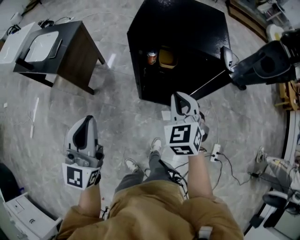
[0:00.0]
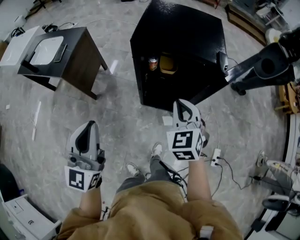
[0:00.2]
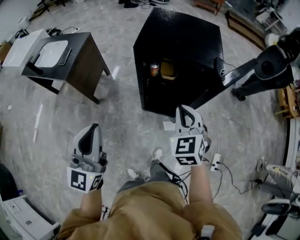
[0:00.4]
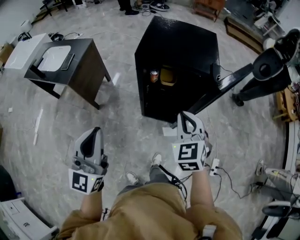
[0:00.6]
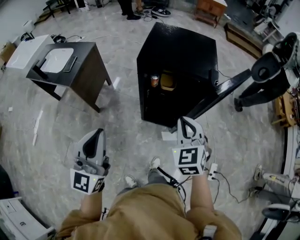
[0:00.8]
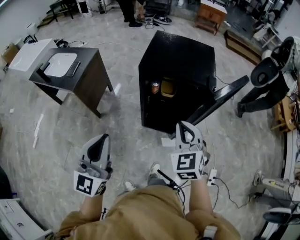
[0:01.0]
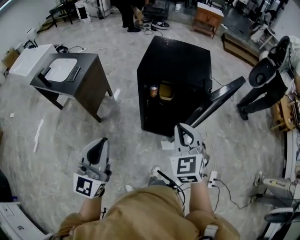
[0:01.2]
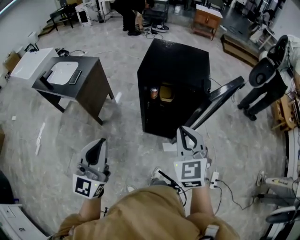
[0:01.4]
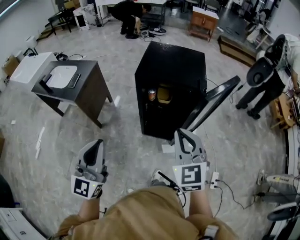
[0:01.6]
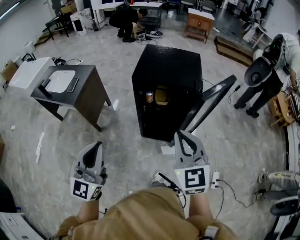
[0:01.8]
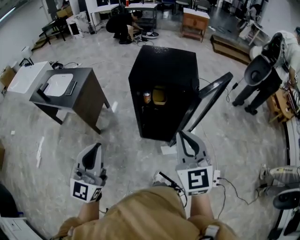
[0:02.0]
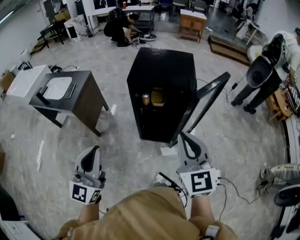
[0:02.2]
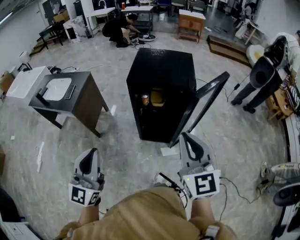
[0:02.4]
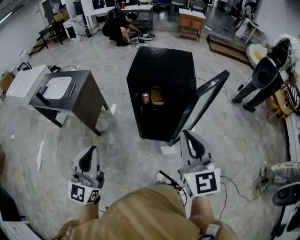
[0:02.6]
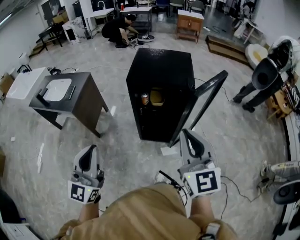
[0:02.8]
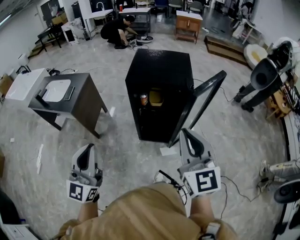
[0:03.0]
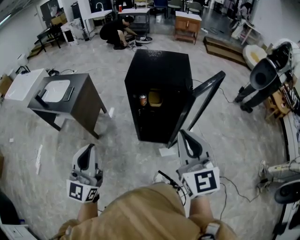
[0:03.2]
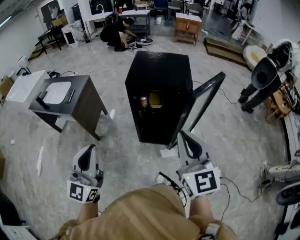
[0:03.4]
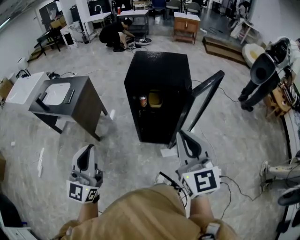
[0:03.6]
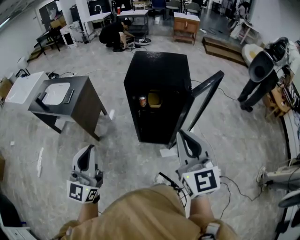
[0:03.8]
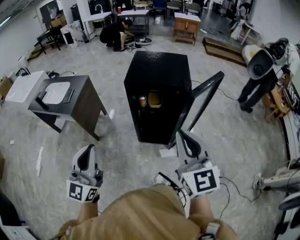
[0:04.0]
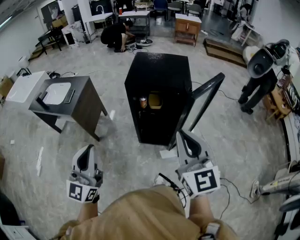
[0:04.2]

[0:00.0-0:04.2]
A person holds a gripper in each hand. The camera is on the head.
0.0 to 1.4 s: The left gripper travels backward and upward by roughly 15 cm. Meanwhile the right gripper heads upward and backward, covering some 20 cm.
1.4 to 2.8 s: The left gripper shifts by roughly 5 cm; the right gripper heads upward and backward, covering about 10 cm, and turns by some 30 degrees.
2.8 to 4.2 s: The two grippers keep their place.

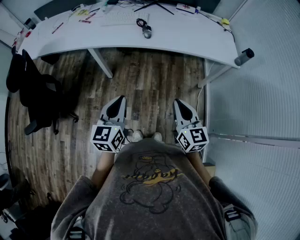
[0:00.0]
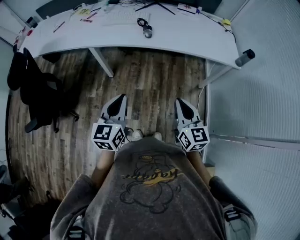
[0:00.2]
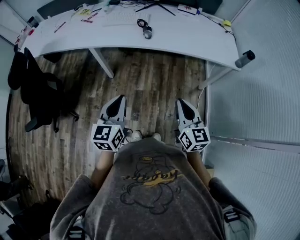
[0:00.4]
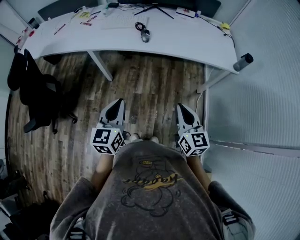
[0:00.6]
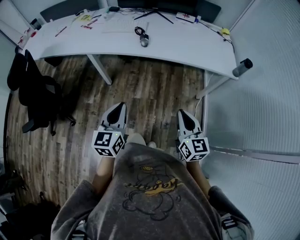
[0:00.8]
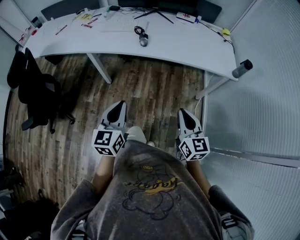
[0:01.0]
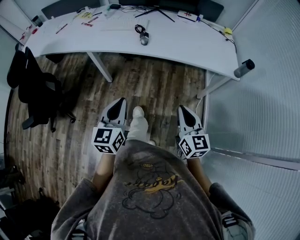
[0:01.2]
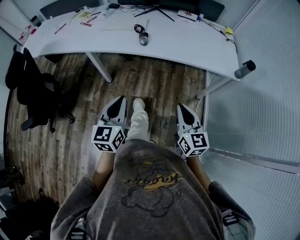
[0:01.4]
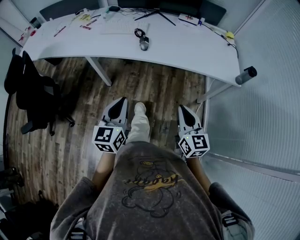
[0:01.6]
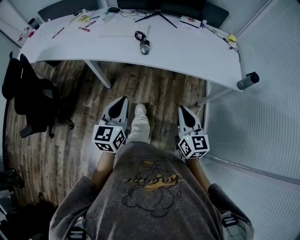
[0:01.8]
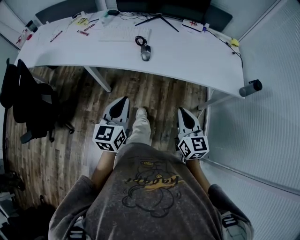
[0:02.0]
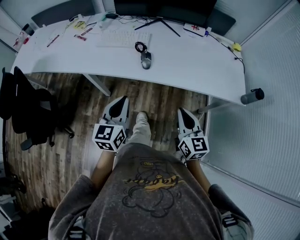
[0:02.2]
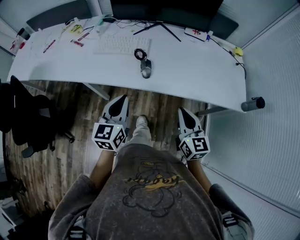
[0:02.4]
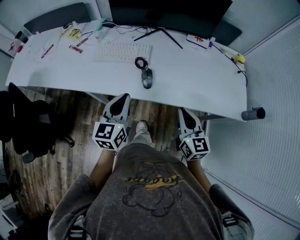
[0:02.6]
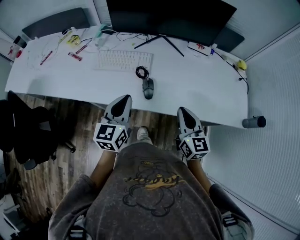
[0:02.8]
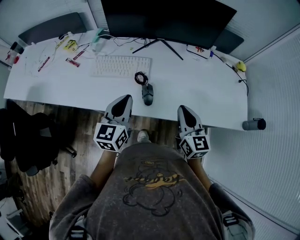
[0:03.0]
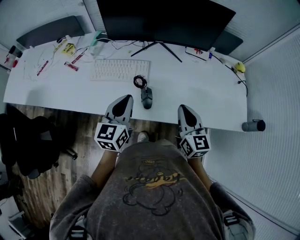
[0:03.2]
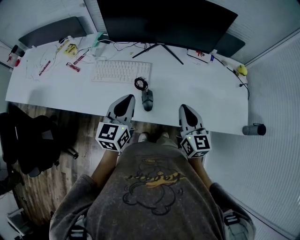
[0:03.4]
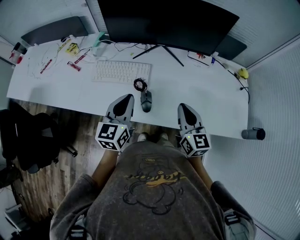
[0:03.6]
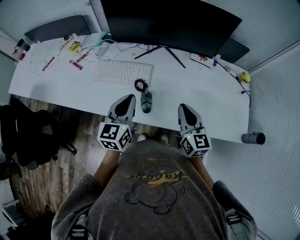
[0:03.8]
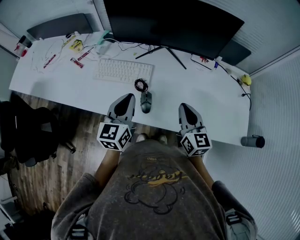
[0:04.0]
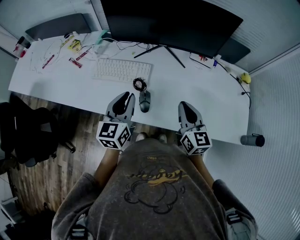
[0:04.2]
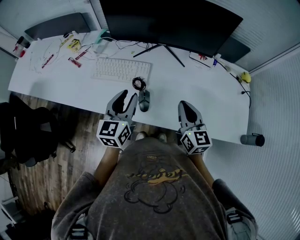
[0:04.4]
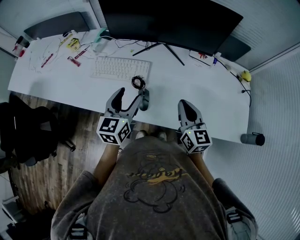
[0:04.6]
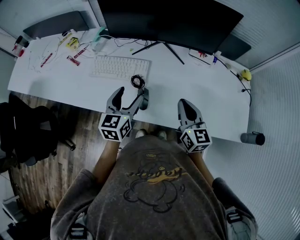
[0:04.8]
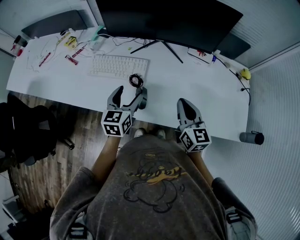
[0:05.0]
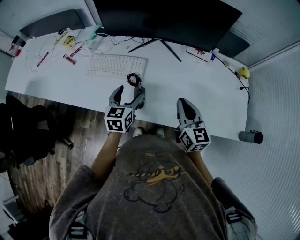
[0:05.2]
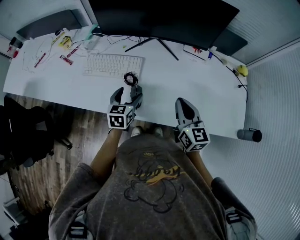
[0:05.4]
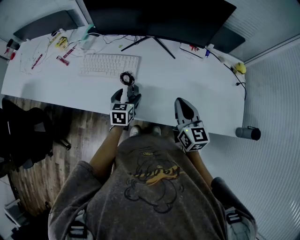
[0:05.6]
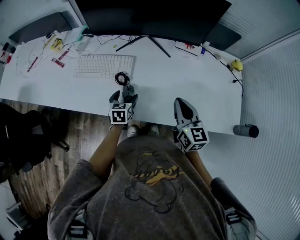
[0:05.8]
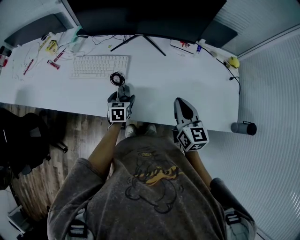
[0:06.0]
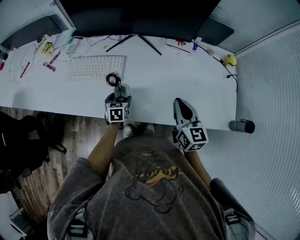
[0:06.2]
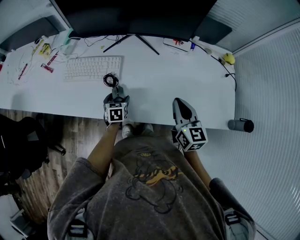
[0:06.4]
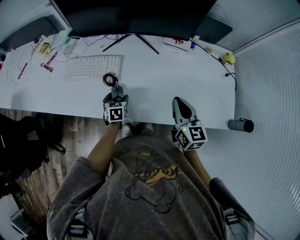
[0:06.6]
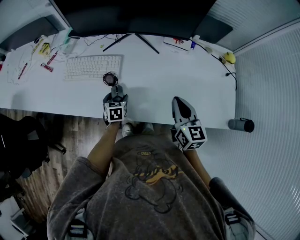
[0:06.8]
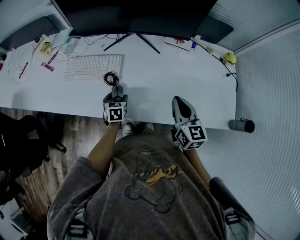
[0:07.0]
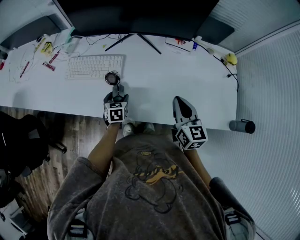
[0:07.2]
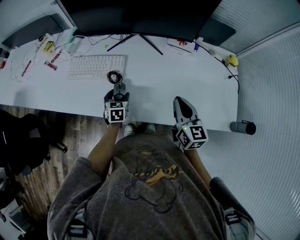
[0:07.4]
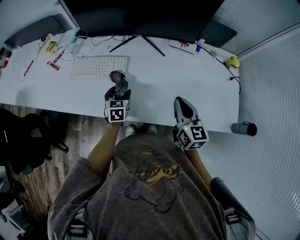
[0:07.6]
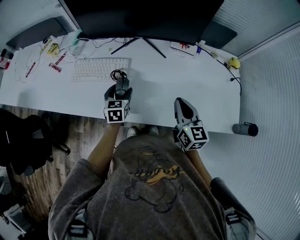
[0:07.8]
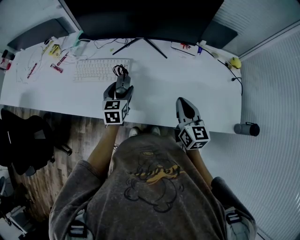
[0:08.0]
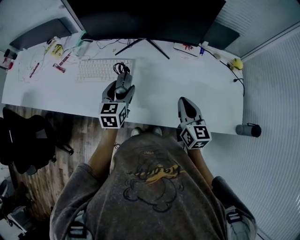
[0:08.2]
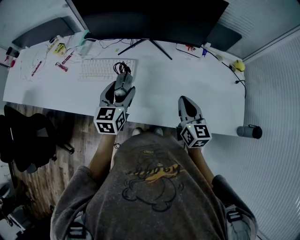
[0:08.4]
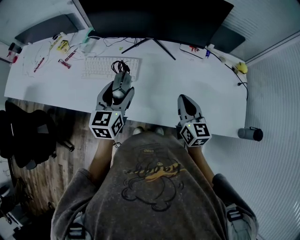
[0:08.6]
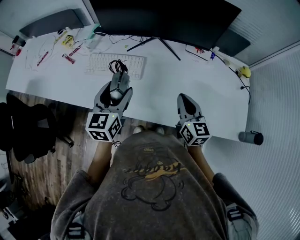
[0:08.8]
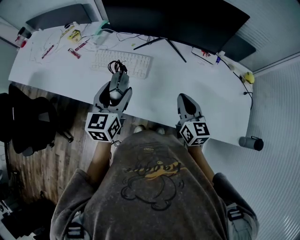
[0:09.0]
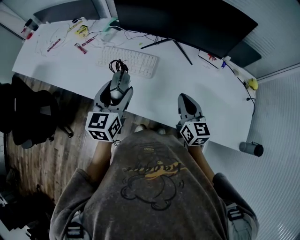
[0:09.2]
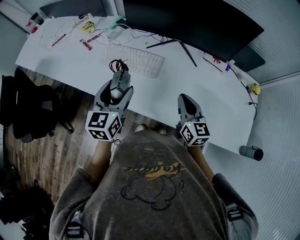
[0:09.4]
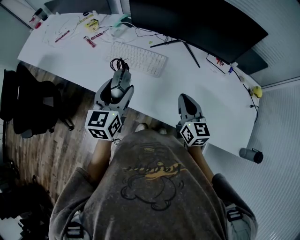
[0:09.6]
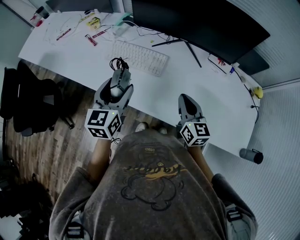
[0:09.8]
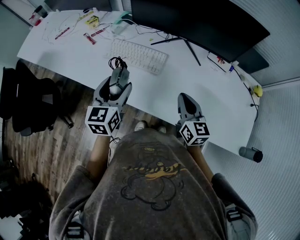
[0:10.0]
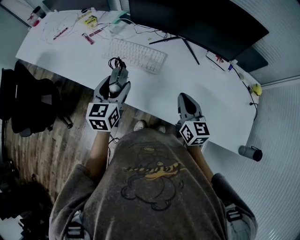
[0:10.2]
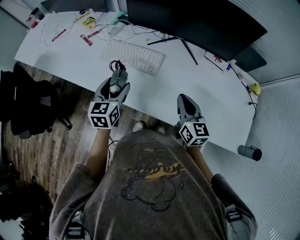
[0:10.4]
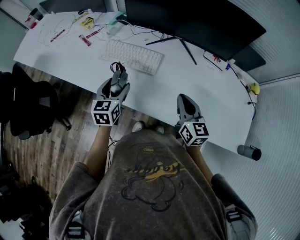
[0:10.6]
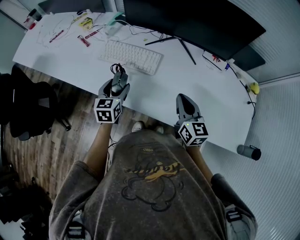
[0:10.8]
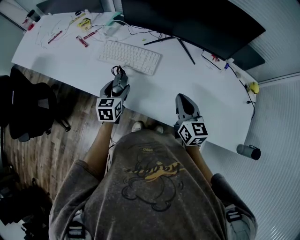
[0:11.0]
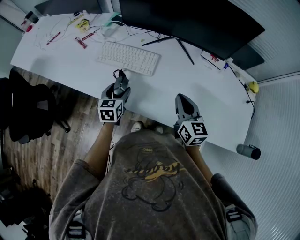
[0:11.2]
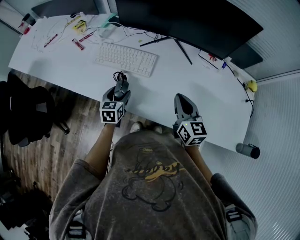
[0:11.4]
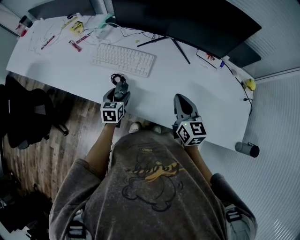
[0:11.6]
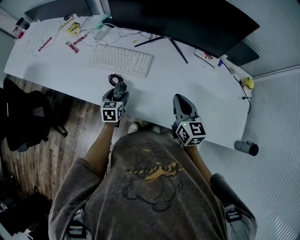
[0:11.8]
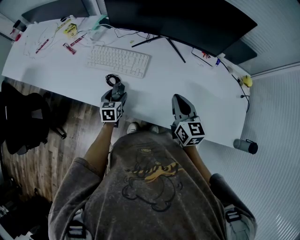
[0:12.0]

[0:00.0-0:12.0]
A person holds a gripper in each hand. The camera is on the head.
0.0 to 1.6 s: The right gripper shifts about 10 cm to the right and forward; the left gripper goes some 10 cm forward and to the right.
1.6 to 3.0 s: The grippers both shift forward by approximately 35 cm.
3.0 to 4.4 s: The left gripper ends up about 5 cm from where it was; the right gripper is displaced forward by about 5 cm.
4.4 to 6.0 s: The left gripper goes roughly 25 cm downward, angles its fingers downward, by approximately 30 degrees, and opens its fingers. Meanwhile the right gripper goes some 5 cm to the right.
6.0 to 7.6 s: There are only small adjustments of the grippers.
7.6 to 9.0 s: The left gripper heads upward, covering about 20 cm, and changes its angle by some 20 degrees, while the right gripper travels to the left by approximately 5 cm.
9.0 to 10.4 s: The left gripper goes about 10 cm to the left and downward.
10.4 to 12.0 s: The left gripper is displaced downward by some 20 cm.

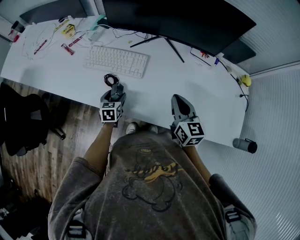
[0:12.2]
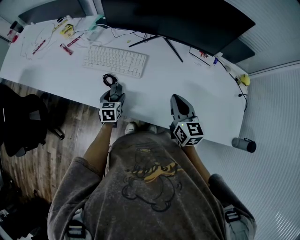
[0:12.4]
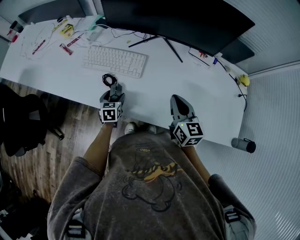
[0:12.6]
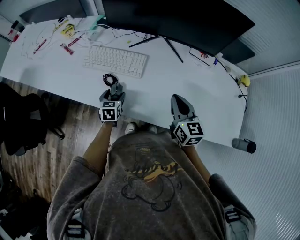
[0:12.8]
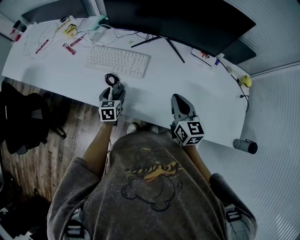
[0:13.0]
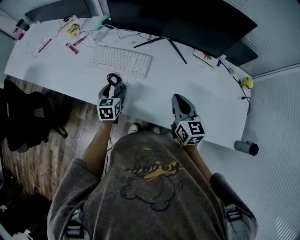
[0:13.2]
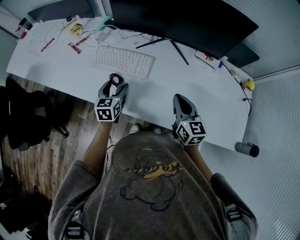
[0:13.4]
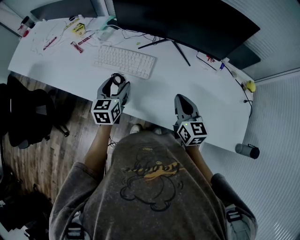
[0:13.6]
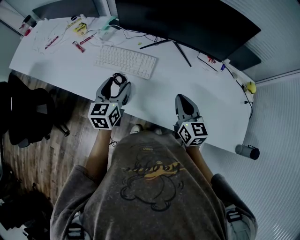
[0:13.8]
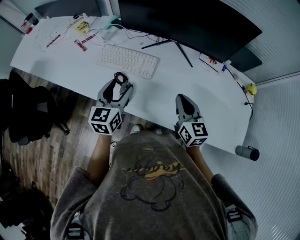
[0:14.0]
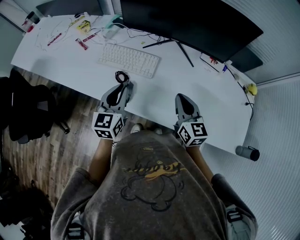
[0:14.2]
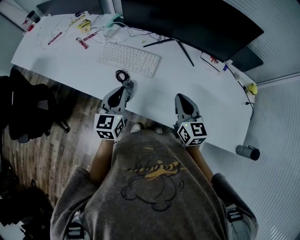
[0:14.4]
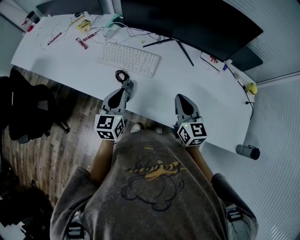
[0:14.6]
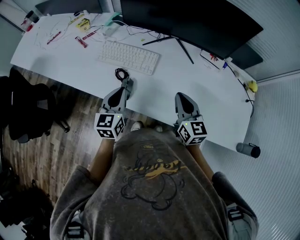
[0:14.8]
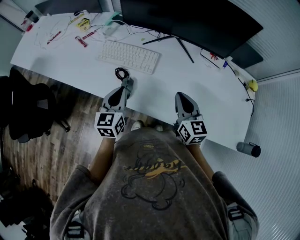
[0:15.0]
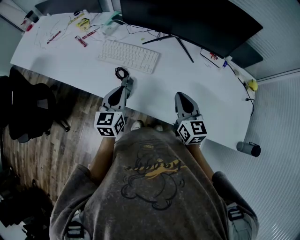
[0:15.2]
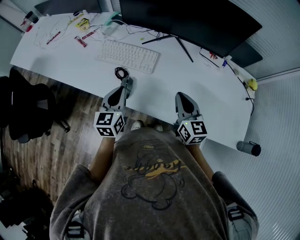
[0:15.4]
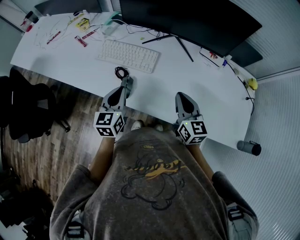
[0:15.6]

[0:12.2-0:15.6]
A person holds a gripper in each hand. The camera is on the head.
12.2 to 13.8 s: The left gripper moves upward, roughly 20 cm, and changes its angle by some 20 degrees.
13.8 to 15.6 s: The left gripper goes about 5 cm backward, and closes up.

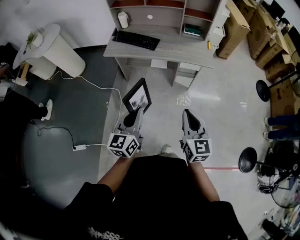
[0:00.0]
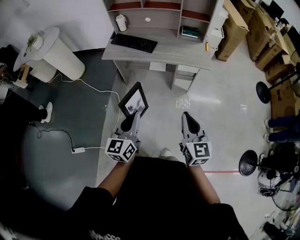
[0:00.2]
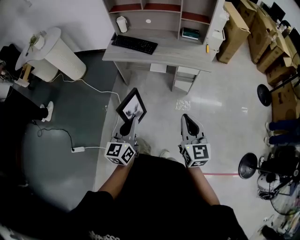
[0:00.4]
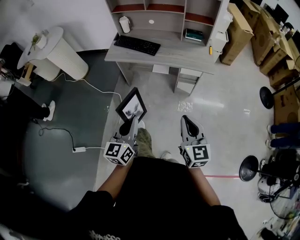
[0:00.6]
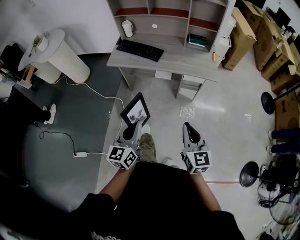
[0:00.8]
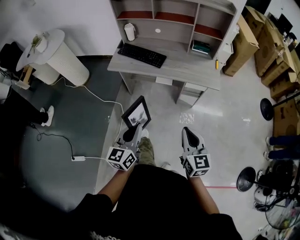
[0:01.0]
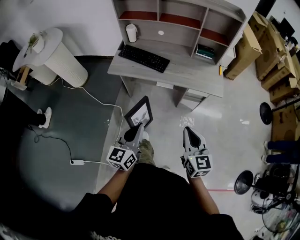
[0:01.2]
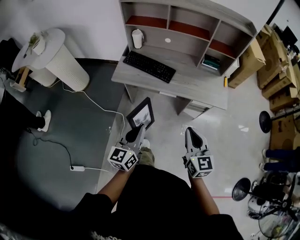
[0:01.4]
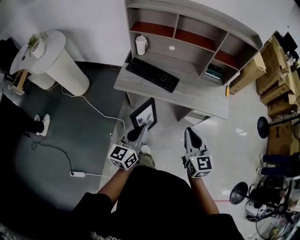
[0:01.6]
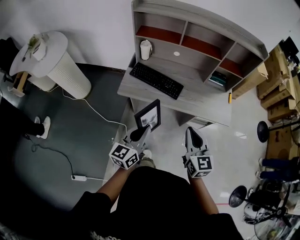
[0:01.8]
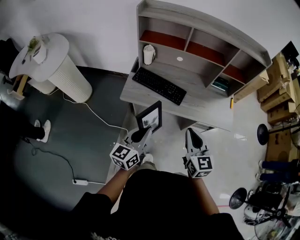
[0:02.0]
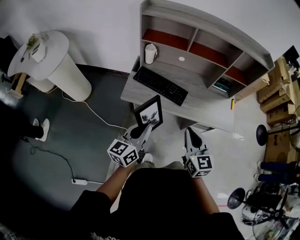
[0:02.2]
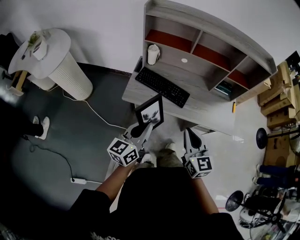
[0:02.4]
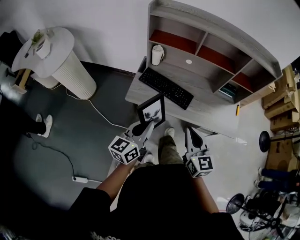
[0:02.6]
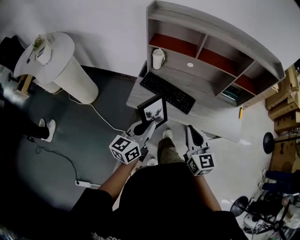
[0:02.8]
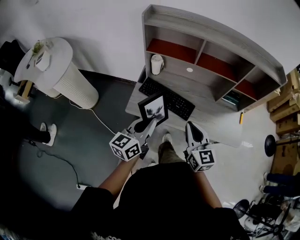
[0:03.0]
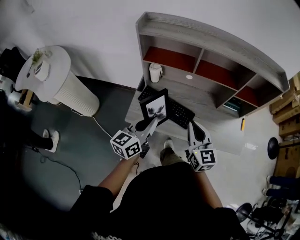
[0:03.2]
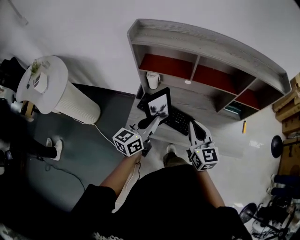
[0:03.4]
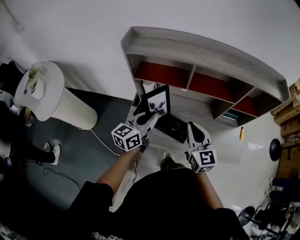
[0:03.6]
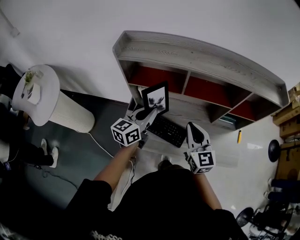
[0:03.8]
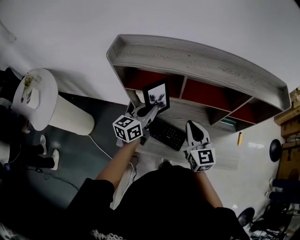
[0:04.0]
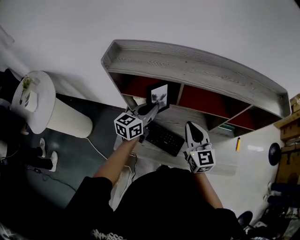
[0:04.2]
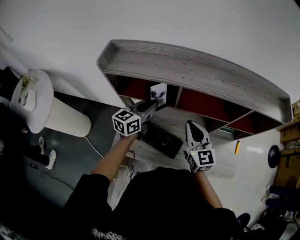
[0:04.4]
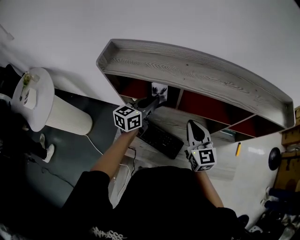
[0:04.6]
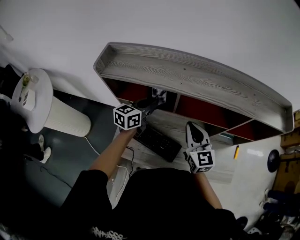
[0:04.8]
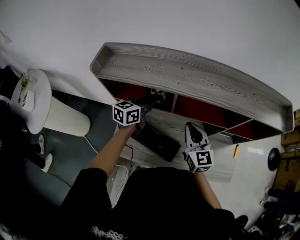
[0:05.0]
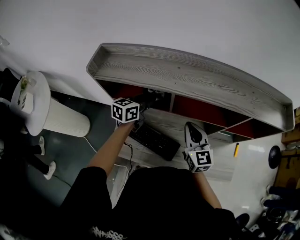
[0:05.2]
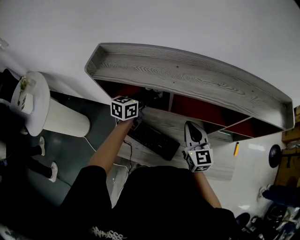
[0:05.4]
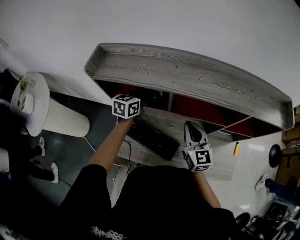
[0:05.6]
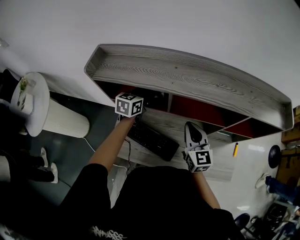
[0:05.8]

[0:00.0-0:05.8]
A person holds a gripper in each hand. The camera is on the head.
0.0 to 1.4 s: The right gripper is displaced forward by some 20 cm. Meanwhile the left gripper is displaced forward and to the left by about 20 cm.
1.4 to 2.8 s: Both grippers move forward and to the left, about 25 cm.
2.8 to 4.4 s: The grippers both shift forward by approximately 40 cm.
4.4 to 5.8 s: The left gripper heads forward, covering roughly 10 cm, and opens up. The right gripper moves some 5 cm.
